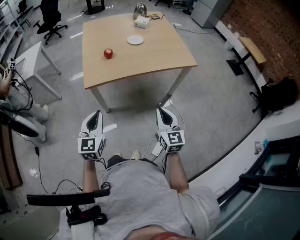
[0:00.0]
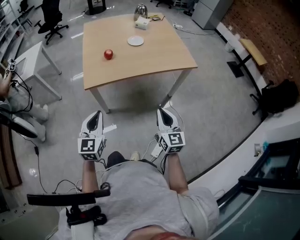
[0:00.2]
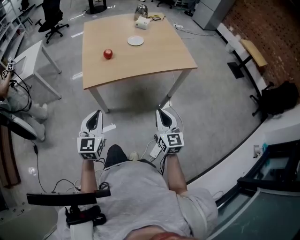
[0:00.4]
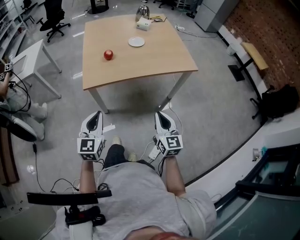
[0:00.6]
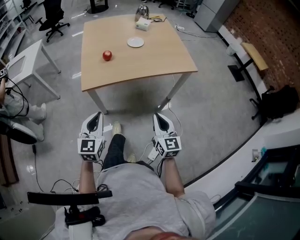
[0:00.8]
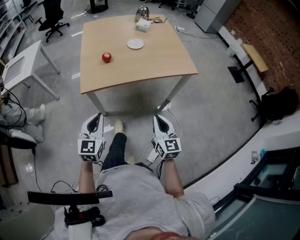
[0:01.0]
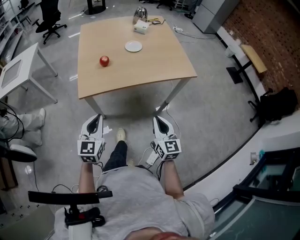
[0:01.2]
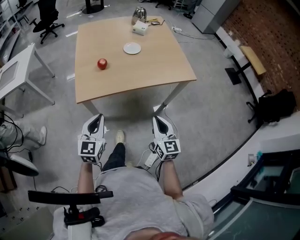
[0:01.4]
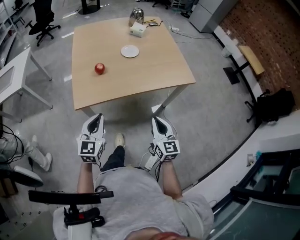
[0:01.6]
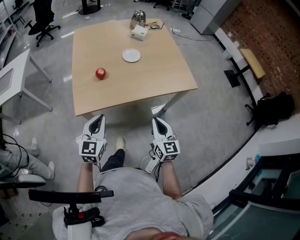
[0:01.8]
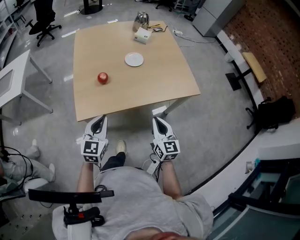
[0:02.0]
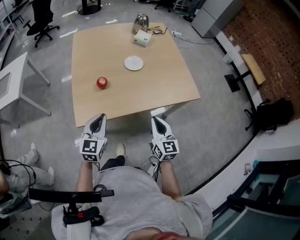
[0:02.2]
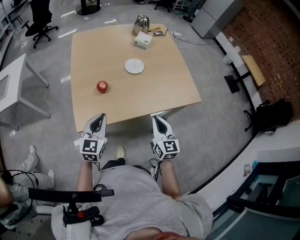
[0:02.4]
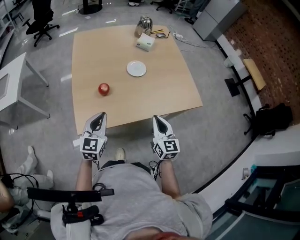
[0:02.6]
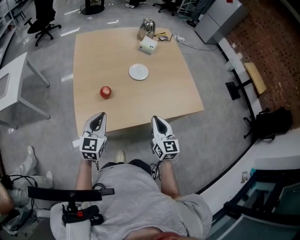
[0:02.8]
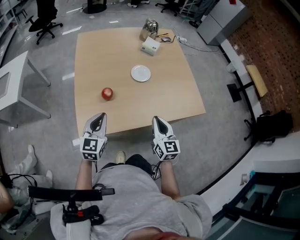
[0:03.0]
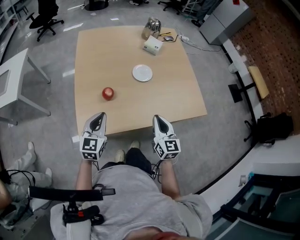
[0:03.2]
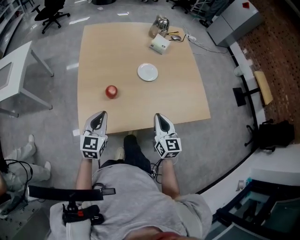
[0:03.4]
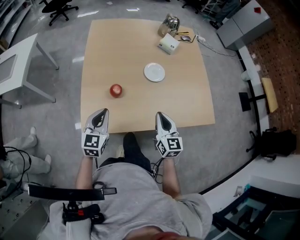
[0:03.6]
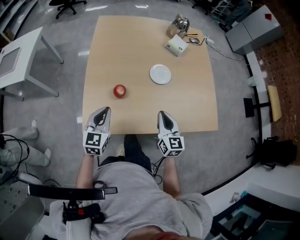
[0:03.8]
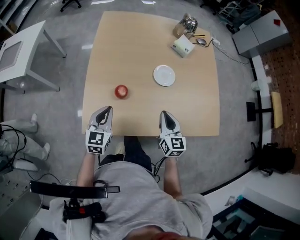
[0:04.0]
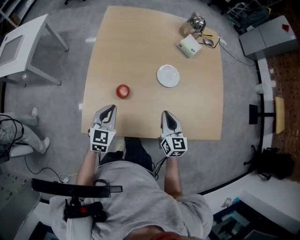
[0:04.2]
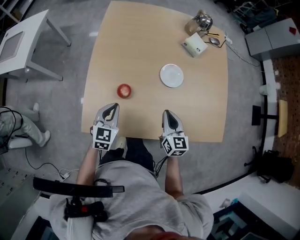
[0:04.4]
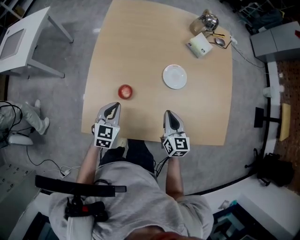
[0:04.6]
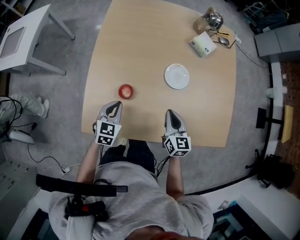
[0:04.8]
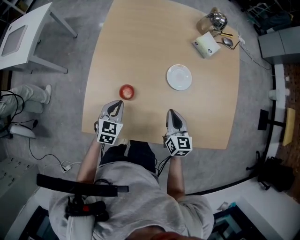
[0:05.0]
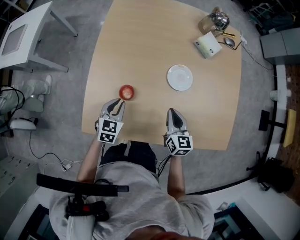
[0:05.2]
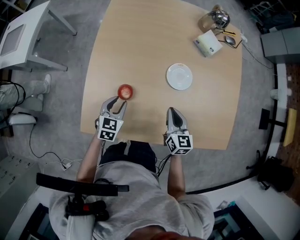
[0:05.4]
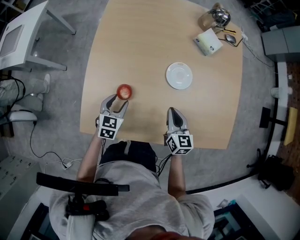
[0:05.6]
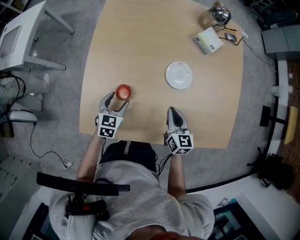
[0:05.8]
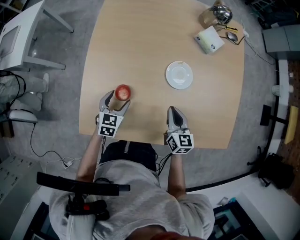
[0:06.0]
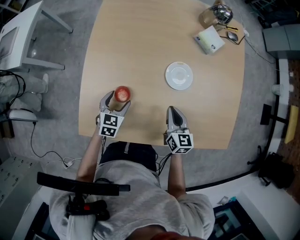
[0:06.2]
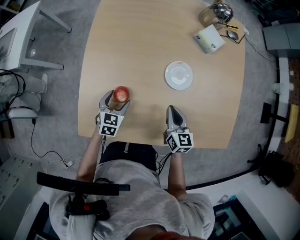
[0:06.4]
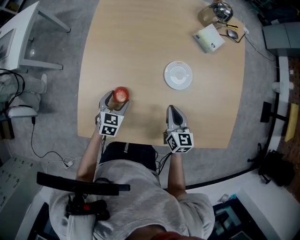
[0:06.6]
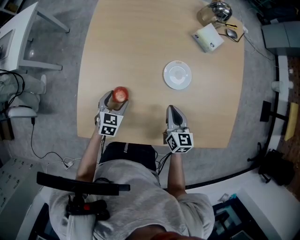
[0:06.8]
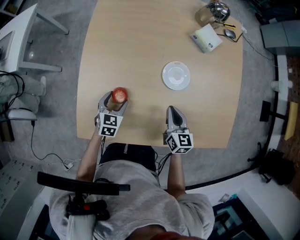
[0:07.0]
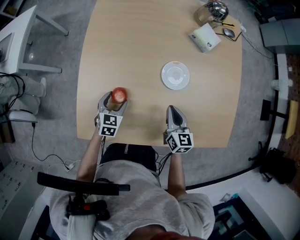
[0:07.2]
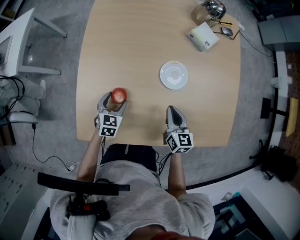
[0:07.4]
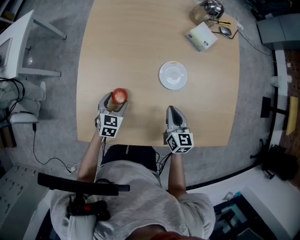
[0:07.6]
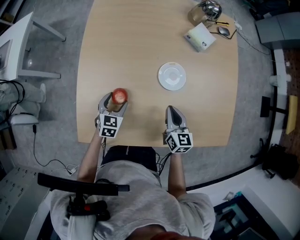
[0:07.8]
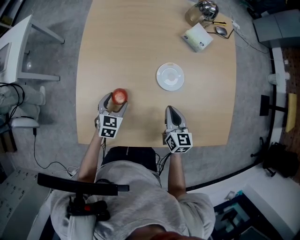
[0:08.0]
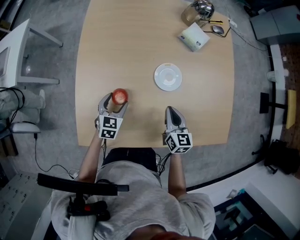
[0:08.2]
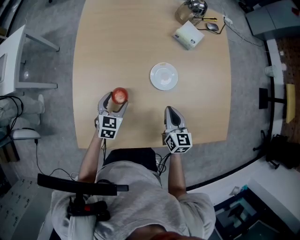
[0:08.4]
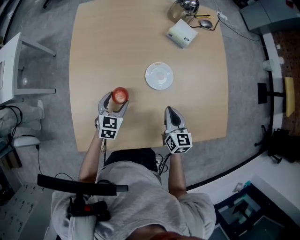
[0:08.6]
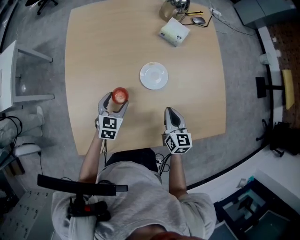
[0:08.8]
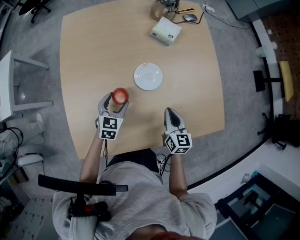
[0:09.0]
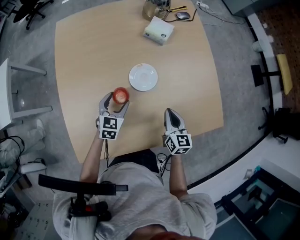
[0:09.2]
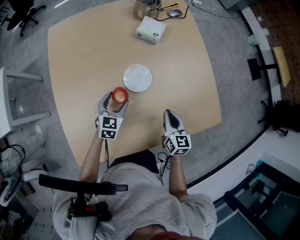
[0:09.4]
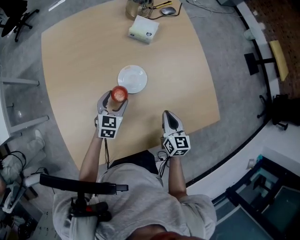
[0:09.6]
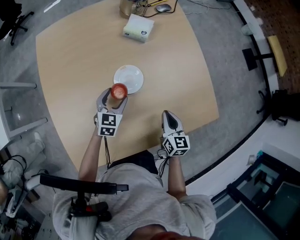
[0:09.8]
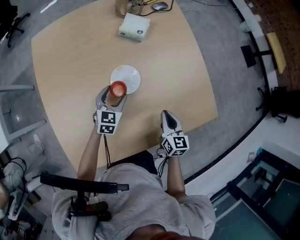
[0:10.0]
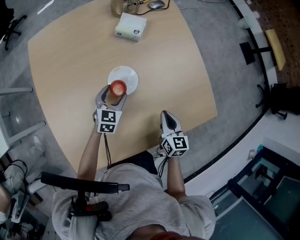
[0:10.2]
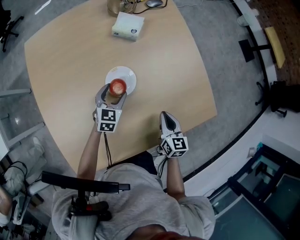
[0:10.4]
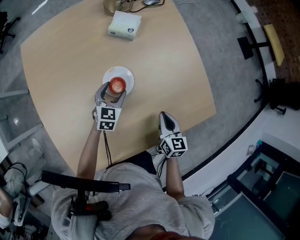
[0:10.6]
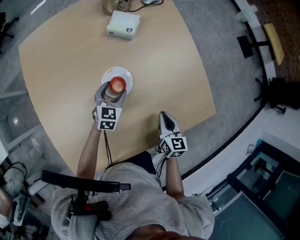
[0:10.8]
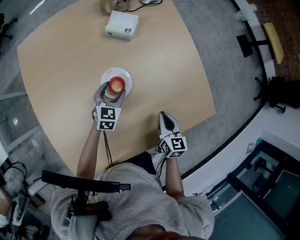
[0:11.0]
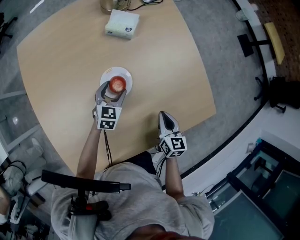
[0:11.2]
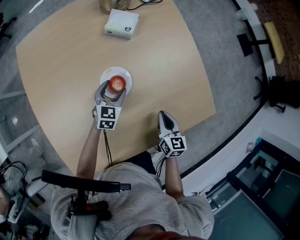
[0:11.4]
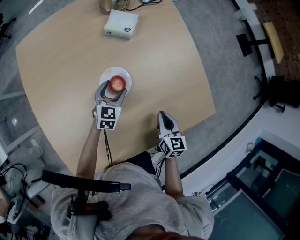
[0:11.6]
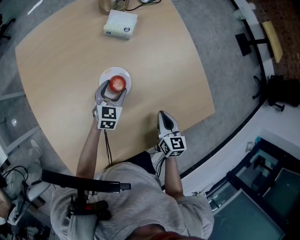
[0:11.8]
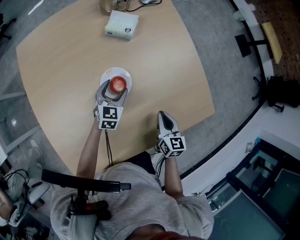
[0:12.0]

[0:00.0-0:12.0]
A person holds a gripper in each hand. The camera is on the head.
0:00.0 to 0:01.6: The grippers both shift forward by roughly 15 cm.
0:01.6 to 0:03.0: The grippers both shift forward by some 25 cm.
0:03.0 to 0:04.4: The grippers both shift forward and downward by some 20 cm.
0:04.4 to 0:06.0: The two grippers go about 10 cm downward and forward. The left gripper opens its fingers.
0:06.0 to 0:07.6: The grippers make only small movements.
0:07.6 to 0:09.0: The left gripper travels to the right, forward and upward by roughly 10 cm. The right gripper is displaced to the right by roughly 5 cm.
0:09.0 to 0:10.4: The right gripper travels to the right by about 10 cm; the left gripper heads to the right and forward, covering about 15 cm.
0:10.4 to 0:12.0: The grippers make only small movements.

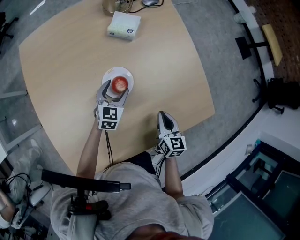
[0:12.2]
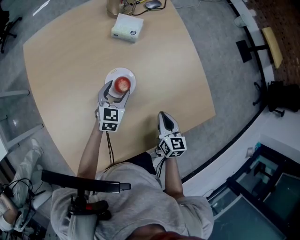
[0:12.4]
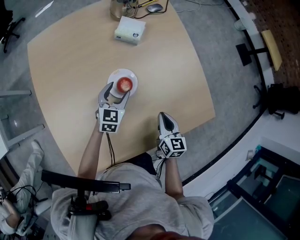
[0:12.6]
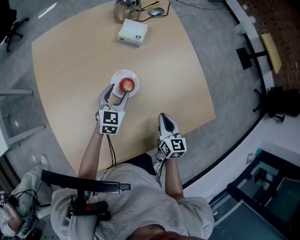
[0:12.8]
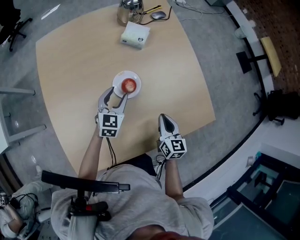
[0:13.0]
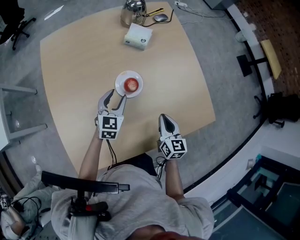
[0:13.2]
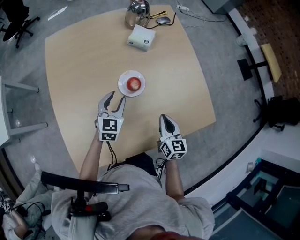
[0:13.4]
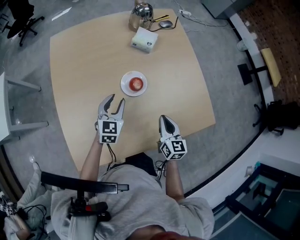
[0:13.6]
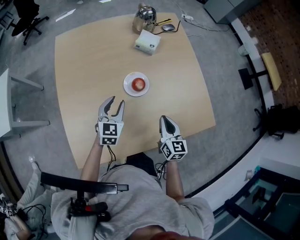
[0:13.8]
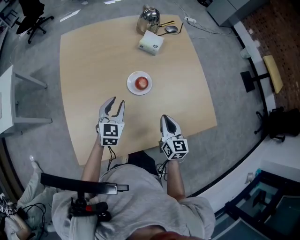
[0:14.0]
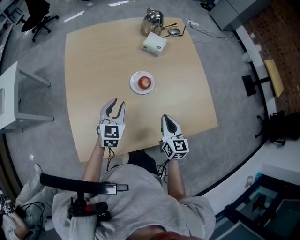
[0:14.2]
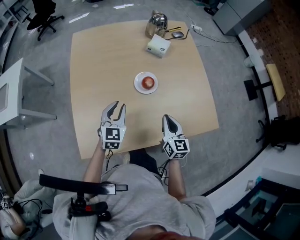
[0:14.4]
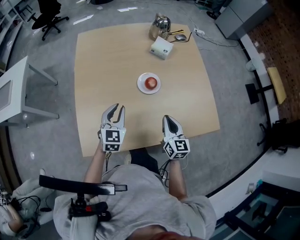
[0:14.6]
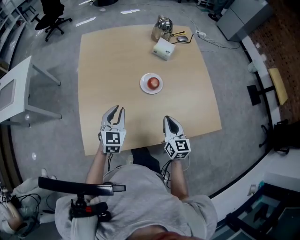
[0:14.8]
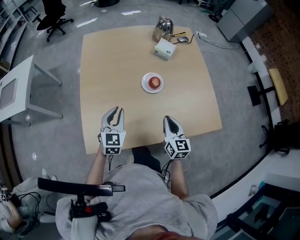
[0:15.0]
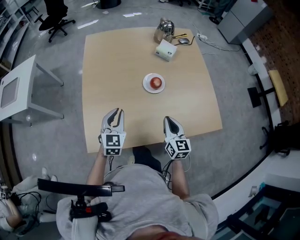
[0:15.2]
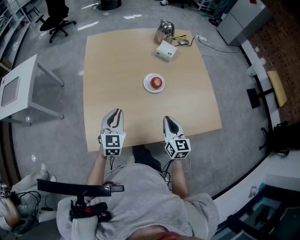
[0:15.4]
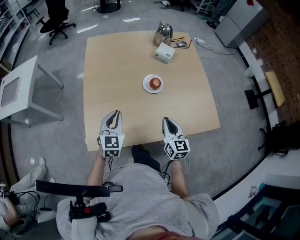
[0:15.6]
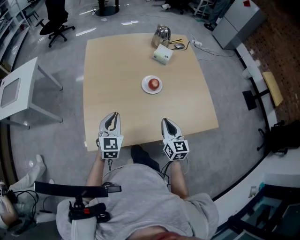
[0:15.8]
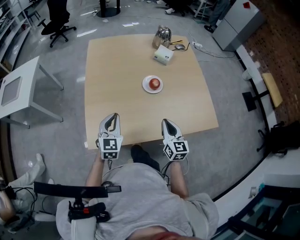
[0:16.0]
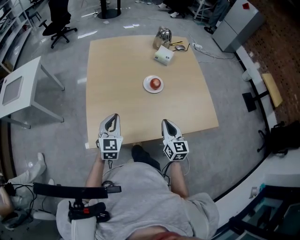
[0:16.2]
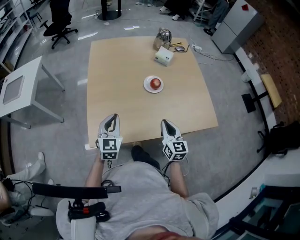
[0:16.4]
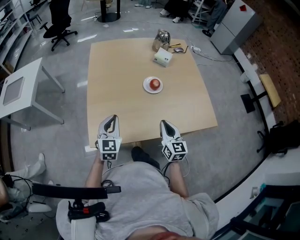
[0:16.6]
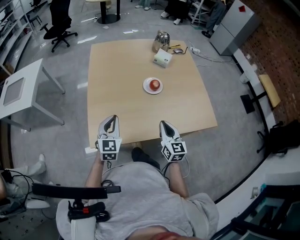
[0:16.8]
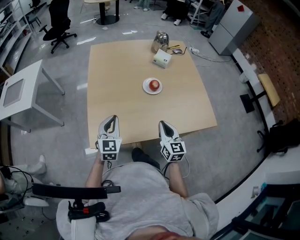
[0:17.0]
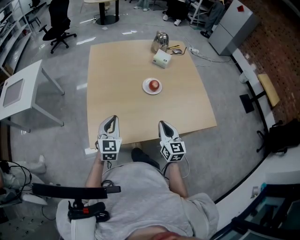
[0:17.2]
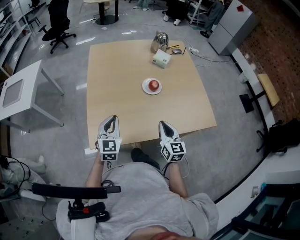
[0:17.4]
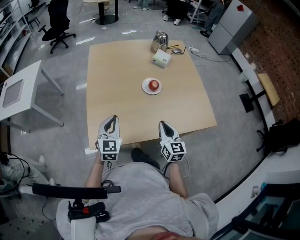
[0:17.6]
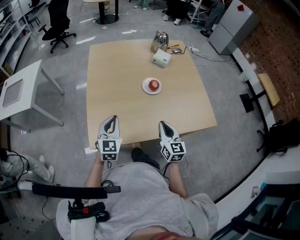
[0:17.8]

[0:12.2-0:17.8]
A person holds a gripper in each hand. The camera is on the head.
0:12.2 to 0:13.6: The left gripper is displaced upward, backward and to the left by about 20 cm, and closes. The right gripper moves upward and backward, roughly 10 cm.
0:13.6 to 0:15.0: The left gripper is displaced backward, to the left and upward by roughly 15 cm. Meanwhile the right gripper goes approximately 10 cm to the left and backward.
0:15.0 to 0:16.4: The right gripper is displaced backward by approximately 10 cm. The left gripper moves backward and to the left, about 10 cm.
0:16.4 to 0:17.8: The grippers move only a little.

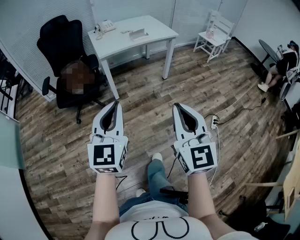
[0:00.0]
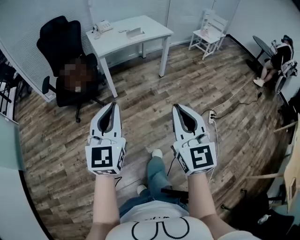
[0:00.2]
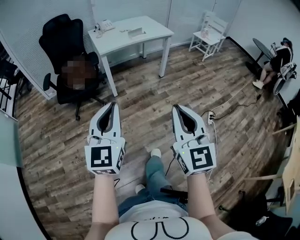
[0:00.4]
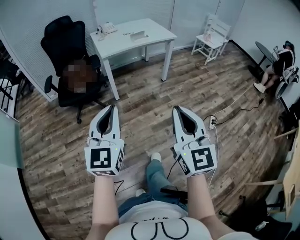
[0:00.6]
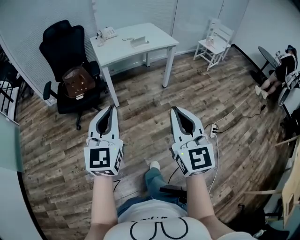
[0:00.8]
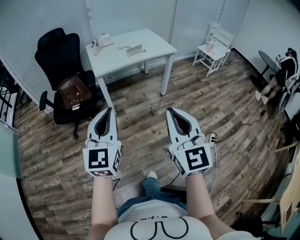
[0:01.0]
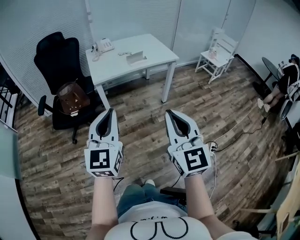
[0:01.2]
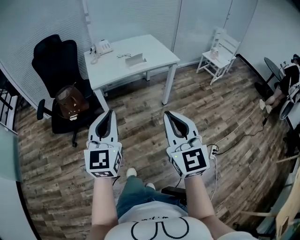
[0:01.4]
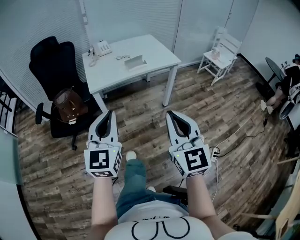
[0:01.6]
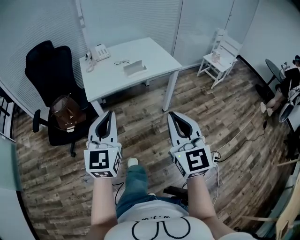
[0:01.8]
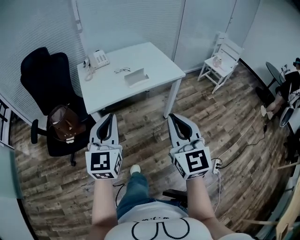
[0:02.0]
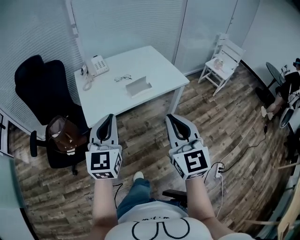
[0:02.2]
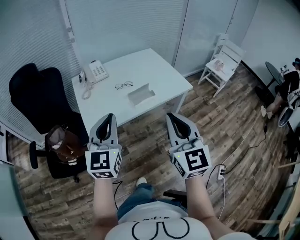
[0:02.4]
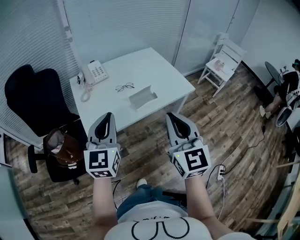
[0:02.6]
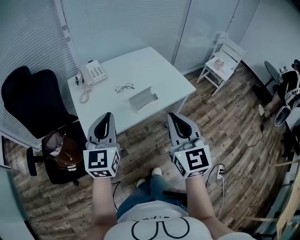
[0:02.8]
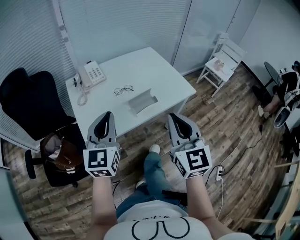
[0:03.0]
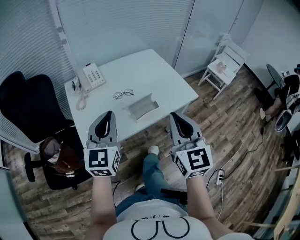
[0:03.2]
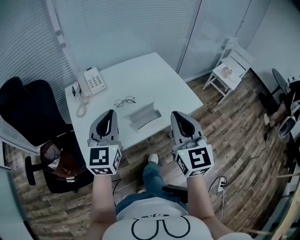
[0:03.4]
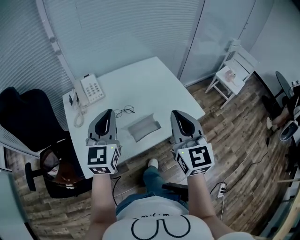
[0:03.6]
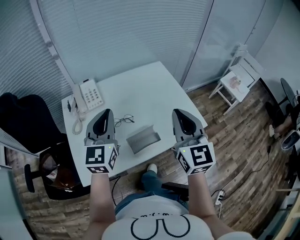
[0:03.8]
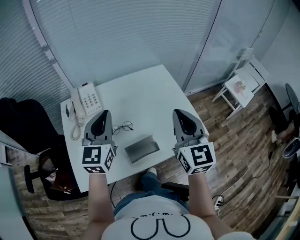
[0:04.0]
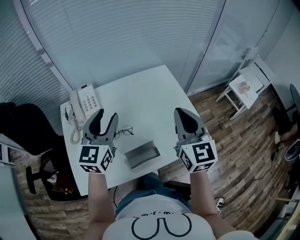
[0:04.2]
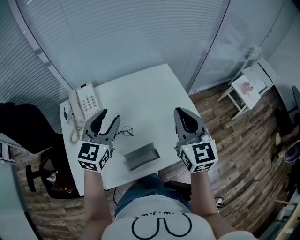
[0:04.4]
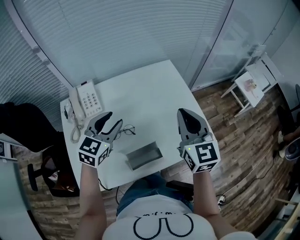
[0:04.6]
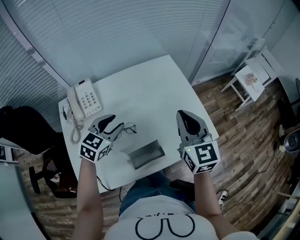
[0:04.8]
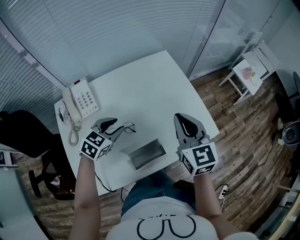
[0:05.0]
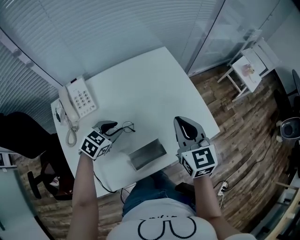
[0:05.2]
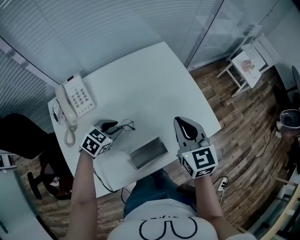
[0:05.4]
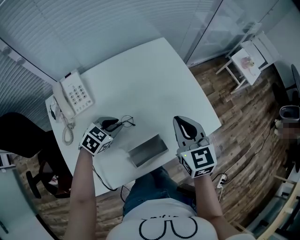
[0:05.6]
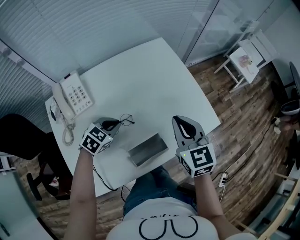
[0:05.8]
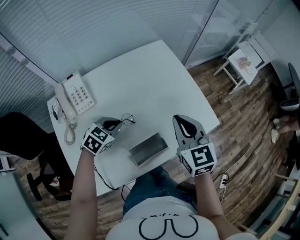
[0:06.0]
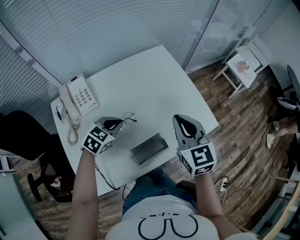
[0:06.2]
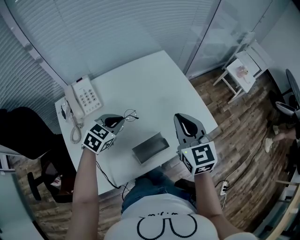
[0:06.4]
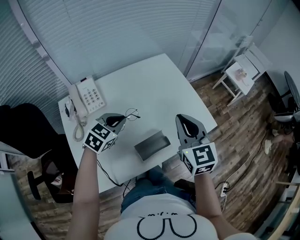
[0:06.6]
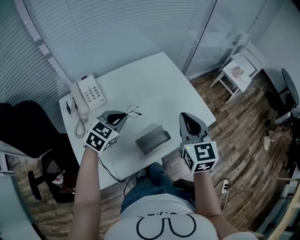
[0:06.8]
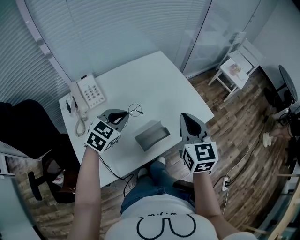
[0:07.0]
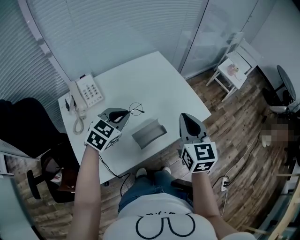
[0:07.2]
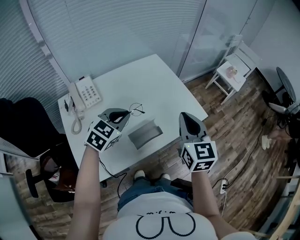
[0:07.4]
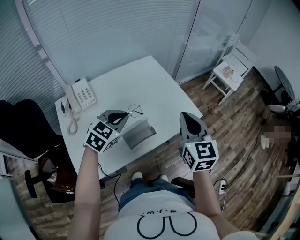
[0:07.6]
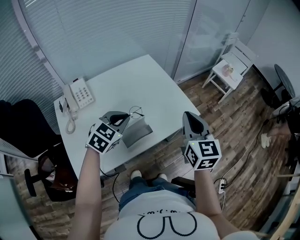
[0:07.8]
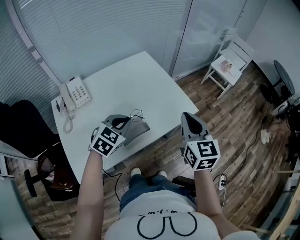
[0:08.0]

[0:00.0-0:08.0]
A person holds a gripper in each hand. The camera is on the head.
0:00.0 to 0:01.6: The grippers both shift forward by about 25 cm.
0:01.6 to 0:03.2: Both grippers are carried forward, about 50 cm.
0:03.2 to 0:04.8: The left gripper heads forward and downward, covering approximately 35 cm, tips its fingers downward by some 30 degrees, and opens up. The right gripper travels forward by roughly 35 cm.
0:04.8 to 0:06.4: The left gripper moves roughly 15 cm downward and comes back, and closes its fingers. Meanwhile the right gripper travels backward by roughly 5 cm, and moves some 10 cm downward and comes back.
0:06.4 to 0:08.0: Both grippers travel together to the right and backward, approximately 15 cm.
